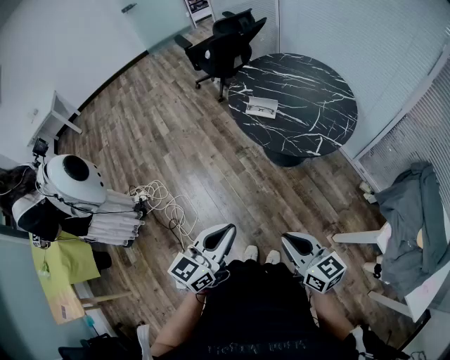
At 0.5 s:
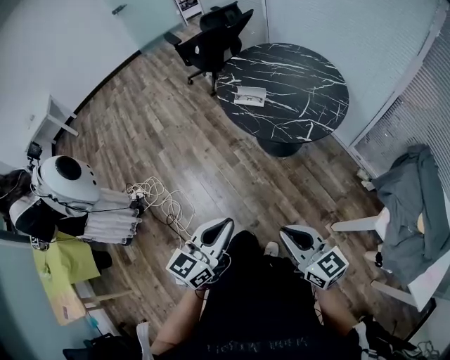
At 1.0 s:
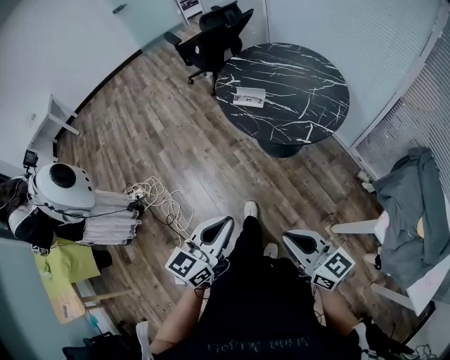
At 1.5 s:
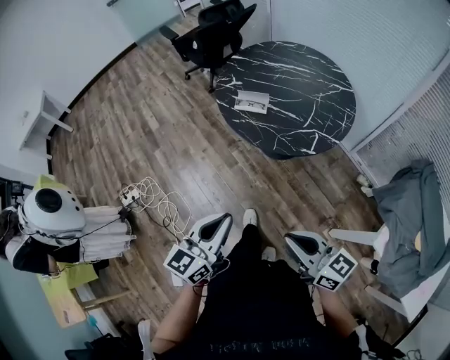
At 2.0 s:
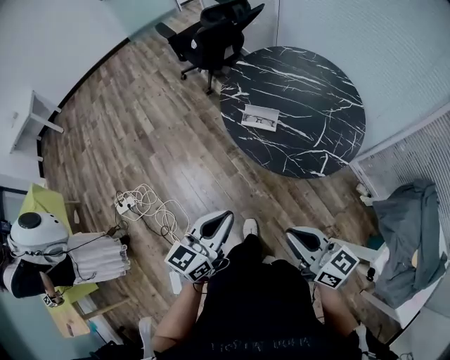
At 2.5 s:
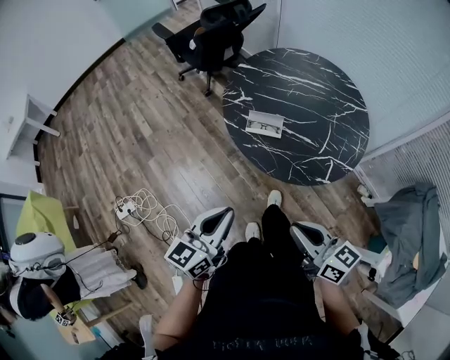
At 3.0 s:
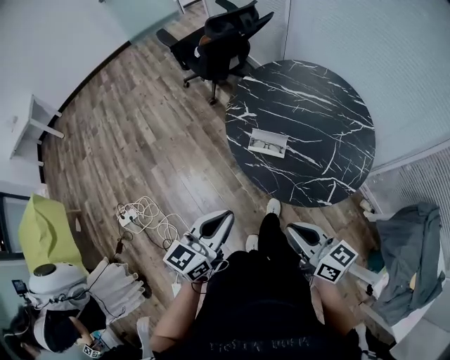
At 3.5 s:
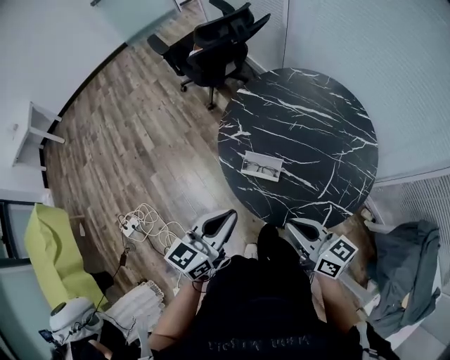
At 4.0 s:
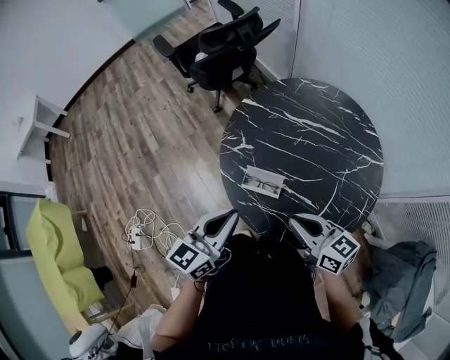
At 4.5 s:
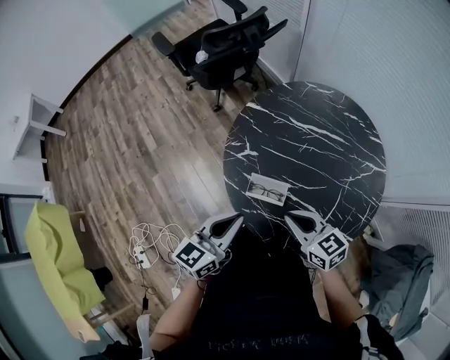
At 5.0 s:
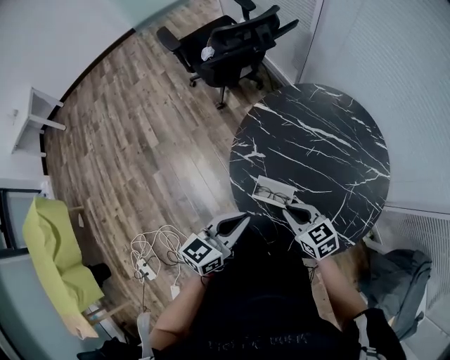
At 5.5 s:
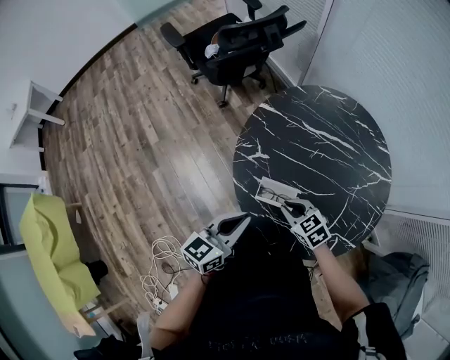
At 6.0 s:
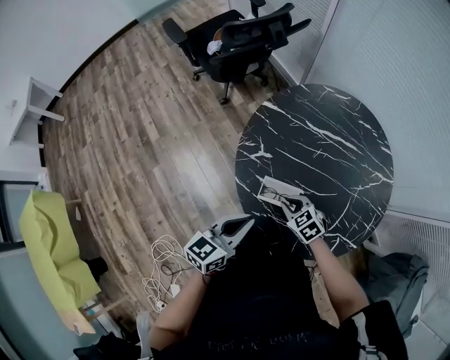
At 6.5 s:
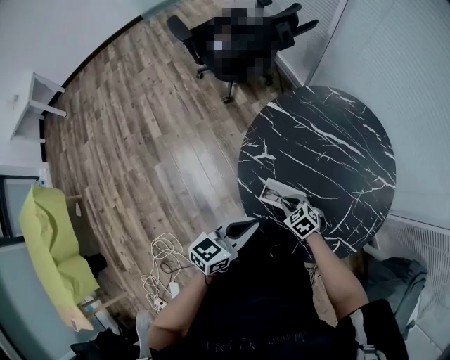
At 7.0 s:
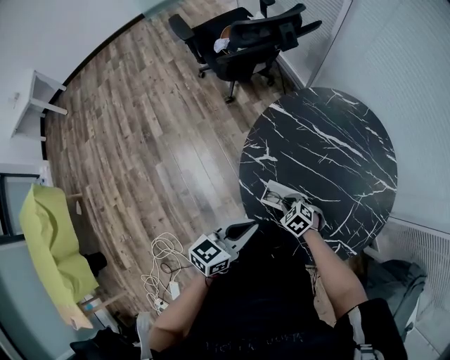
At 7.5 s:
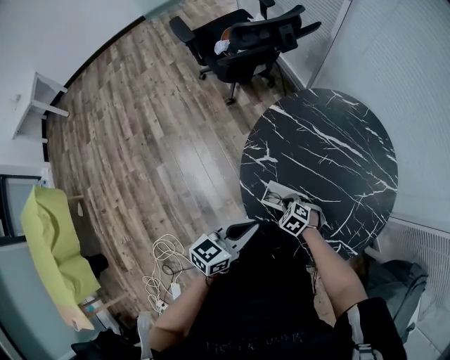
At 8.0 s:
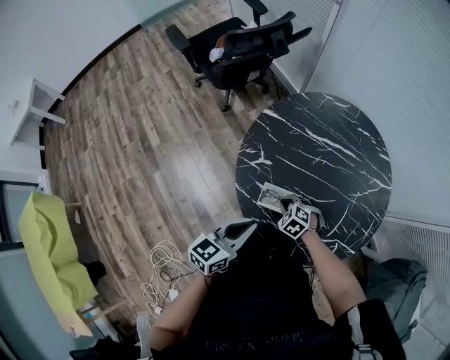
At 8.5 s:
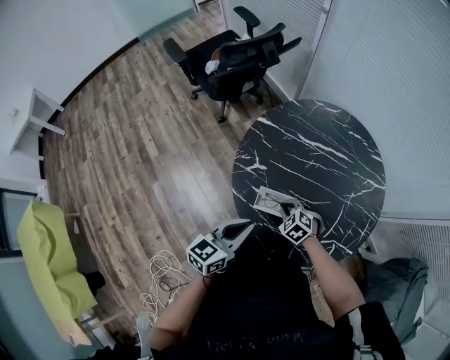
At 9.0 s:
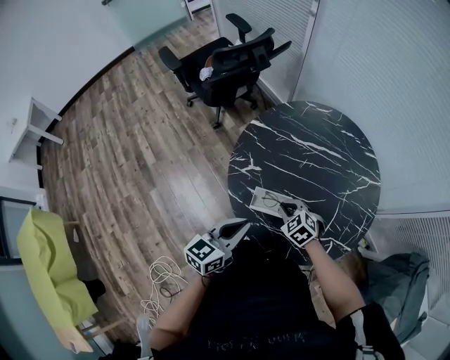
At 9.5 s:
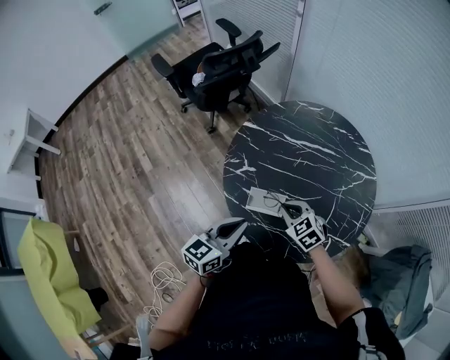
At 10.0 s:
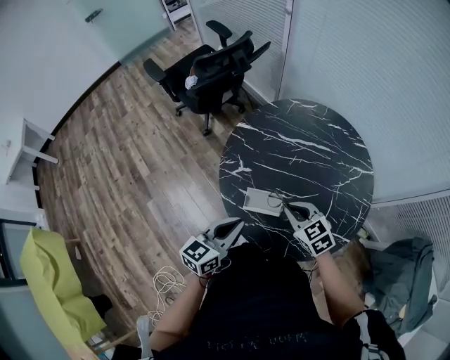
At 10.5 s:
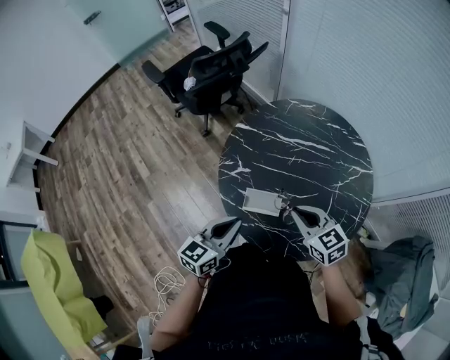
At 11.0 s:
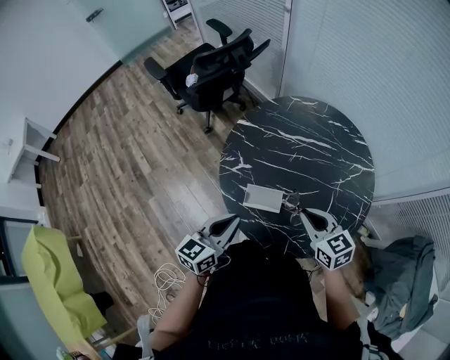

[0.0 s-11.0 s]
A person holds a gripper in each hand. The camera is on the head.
0.0 to 2.0 s: The two grippers go some 20 cm forward.
2.0 to 3.5 s: Both grippers move forward, approximately 25 cm.
3.5 to 5.5 s: The left gripper is displaced forward and downward by roughly 10 cm, while the right gripper is displaced downward and forward by approximately 25 cm, and tilts its fingers some 40 degrees downward.
5.5 to 7.5 s: The right gripper travels downward by roughly 10 cm, and rotates some 40 degrees.
7.5 to 9.0 s: The right gripper goes approximately 10 cm upward, and rotates about 20 degrees.
9.0 to 11.0 s: The right gripper heads upward and to the right, covering roughly 15 cm, and turns by about 40 degrees.

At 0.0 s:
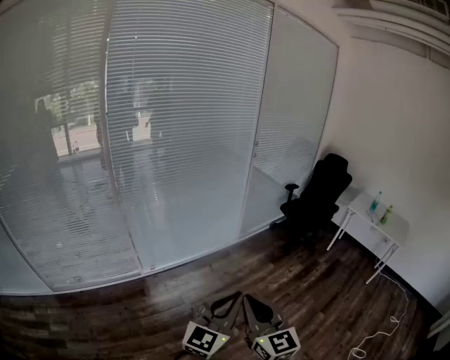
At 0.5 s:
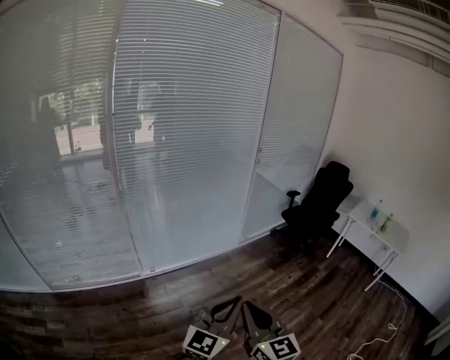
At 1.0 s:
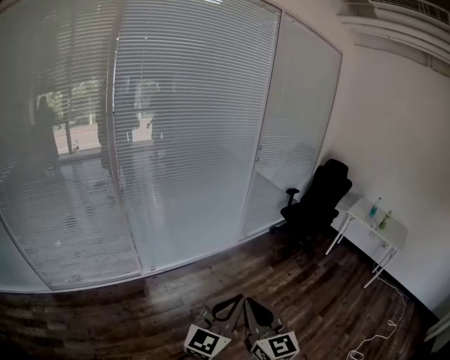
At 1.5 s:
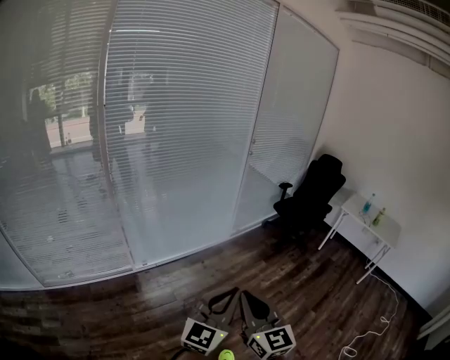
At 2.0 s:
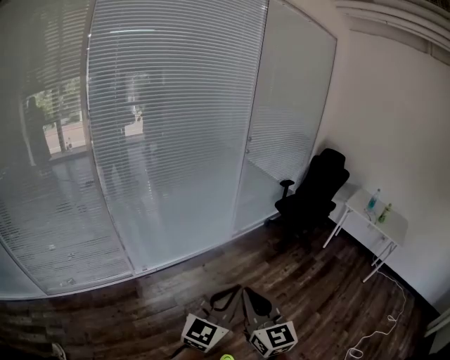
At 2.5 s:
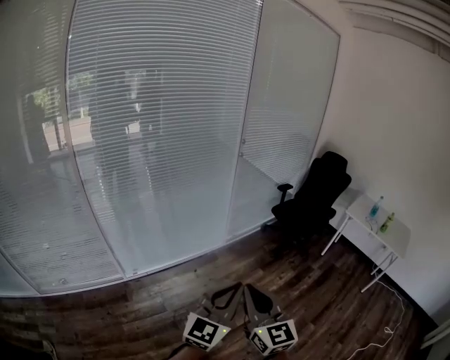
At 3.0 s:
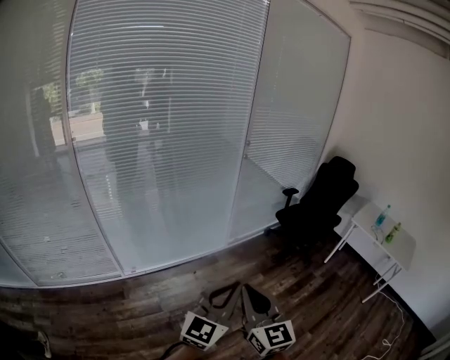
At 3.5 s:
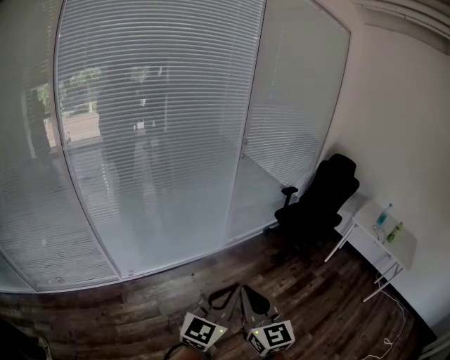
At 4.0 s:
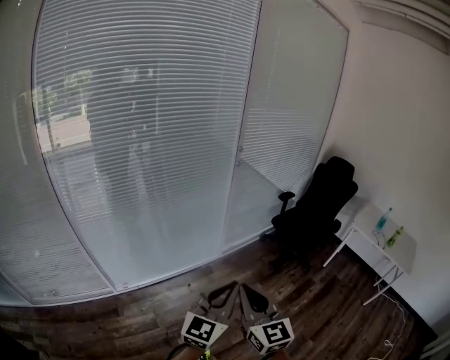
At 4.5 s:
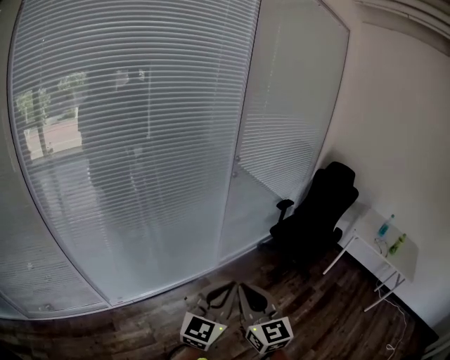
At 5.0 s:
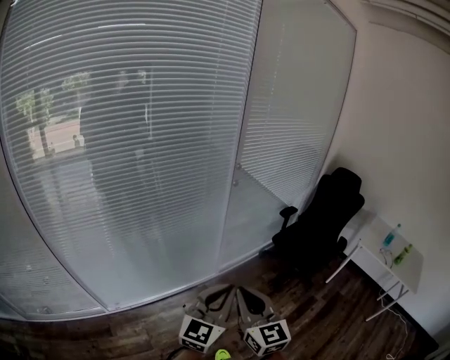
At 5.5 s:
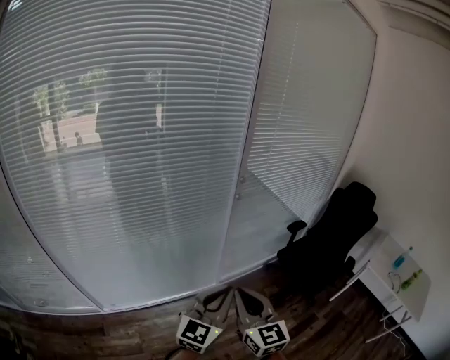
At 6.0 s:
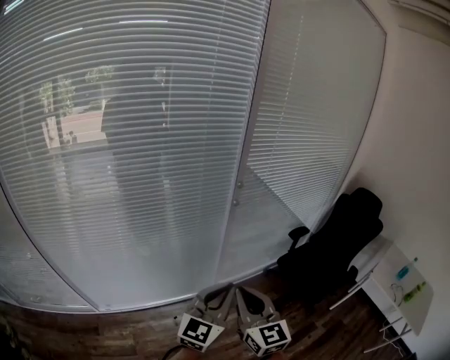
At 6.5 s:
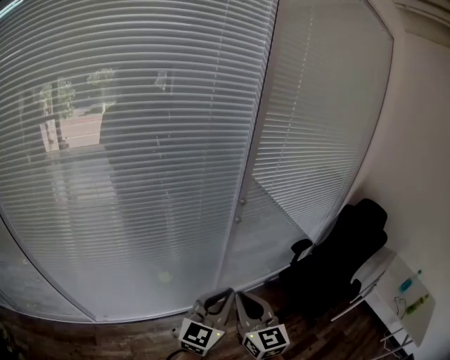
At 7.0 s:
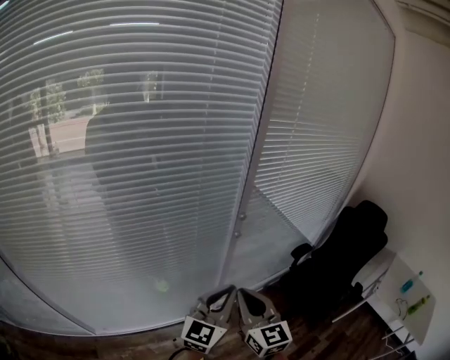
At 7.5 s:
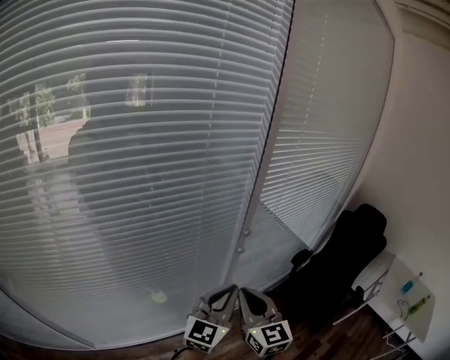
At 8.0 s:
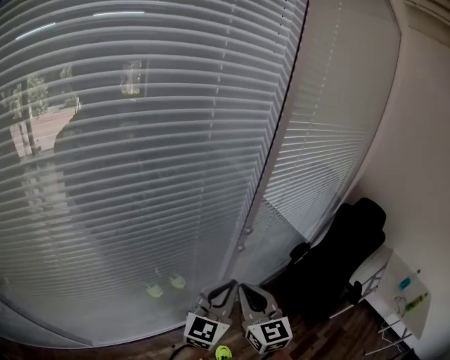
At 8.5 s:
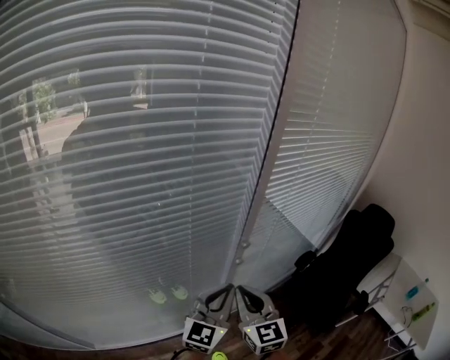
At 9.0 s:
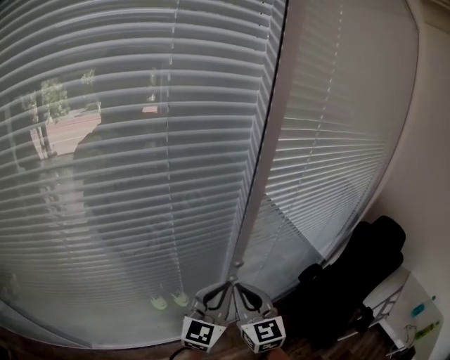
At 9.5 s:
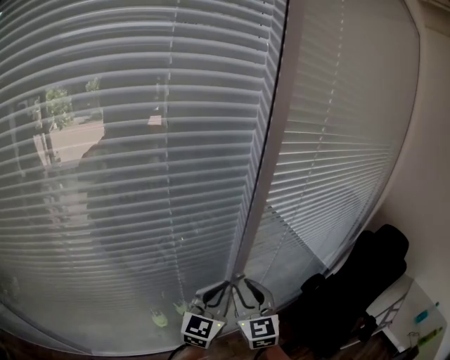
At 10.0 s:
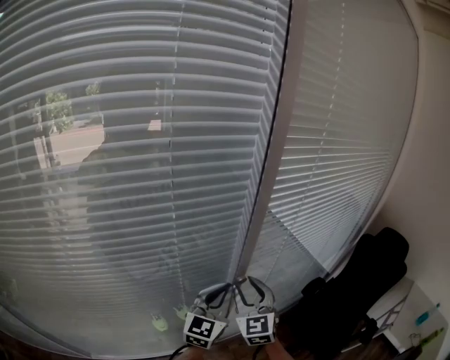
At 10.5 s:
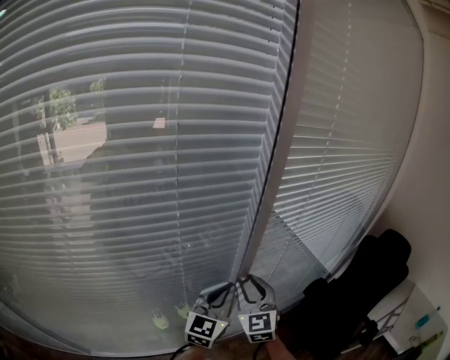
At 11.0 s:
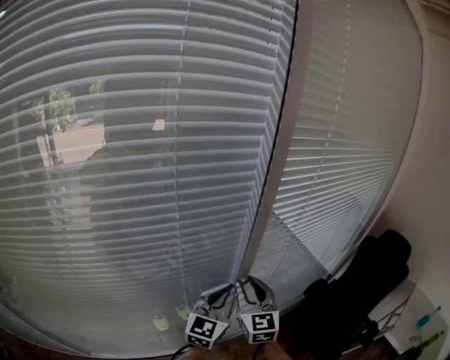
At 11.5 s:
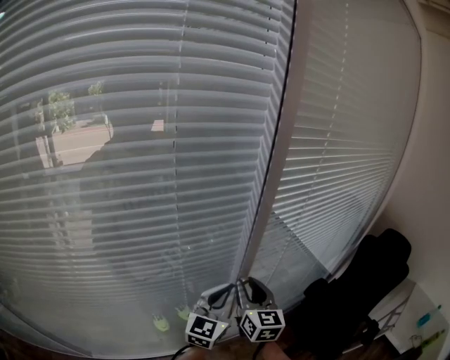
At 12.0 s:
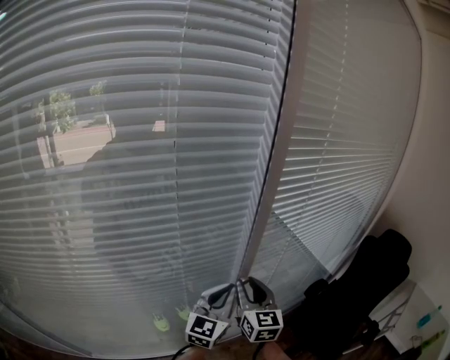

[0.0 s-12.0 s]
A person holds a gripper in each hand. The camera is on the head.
0.0 to 2.0 s: The grippers both shift forward by approximately 10 cm.
2.0 to 4.0 s: The two grippers go some 30 cm forward.
4.0 to 6.0 s: Both grippers move forward, about 35 cm.
6.0 to 8.0 s: The two grippers go roughly 25 cm forward.
8.0 to 10.0 s: Both grippers travel together forward, approximately 15 cm. The right gripper opens.
10.0 to 12.0 s: The right gripper swivels roughly 20 degrees.

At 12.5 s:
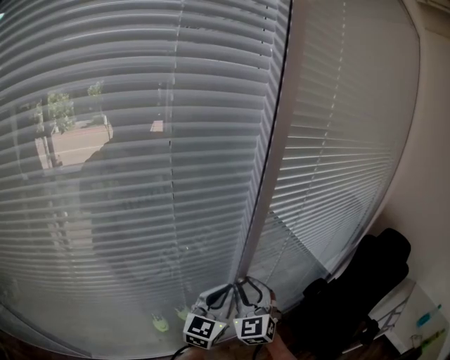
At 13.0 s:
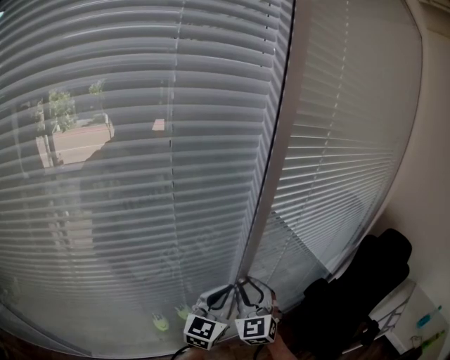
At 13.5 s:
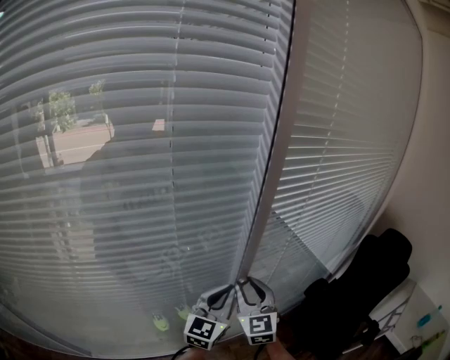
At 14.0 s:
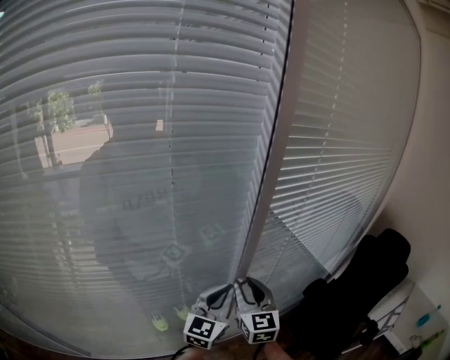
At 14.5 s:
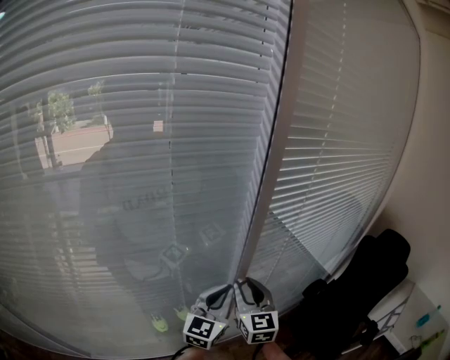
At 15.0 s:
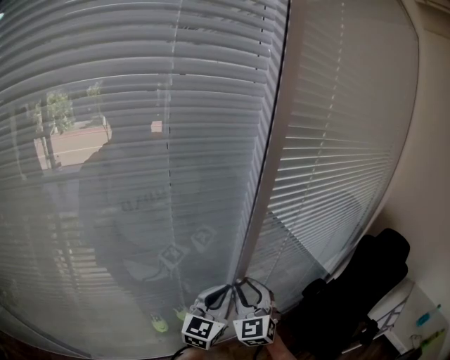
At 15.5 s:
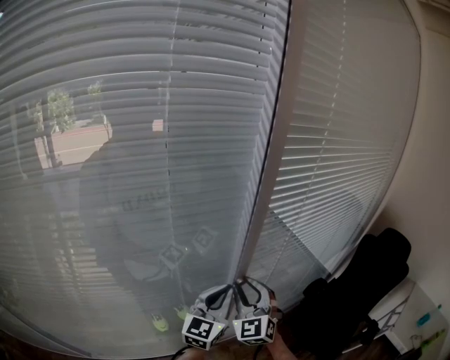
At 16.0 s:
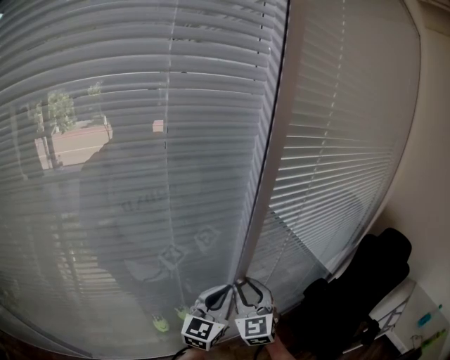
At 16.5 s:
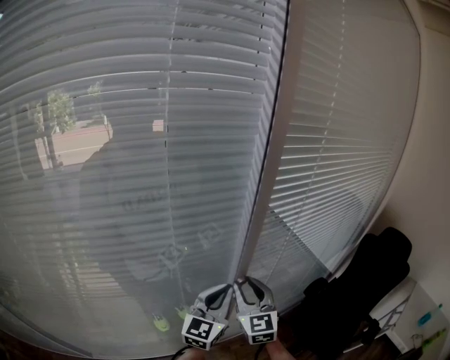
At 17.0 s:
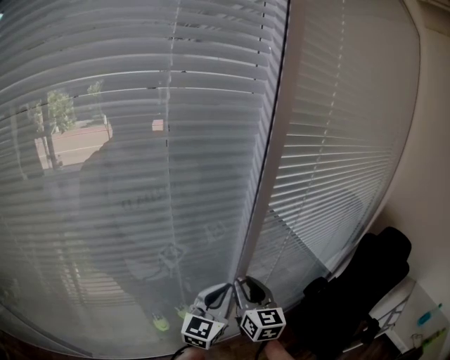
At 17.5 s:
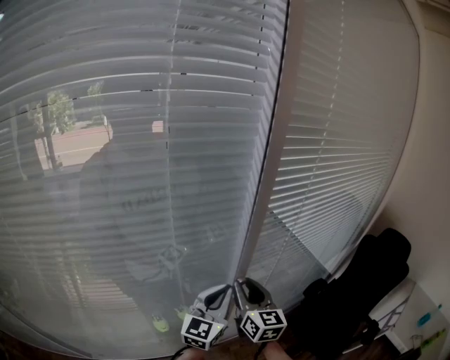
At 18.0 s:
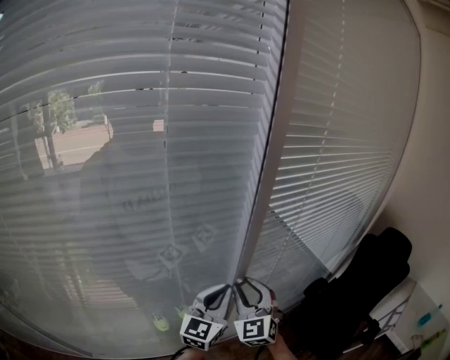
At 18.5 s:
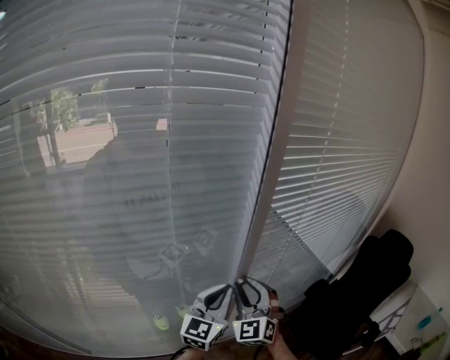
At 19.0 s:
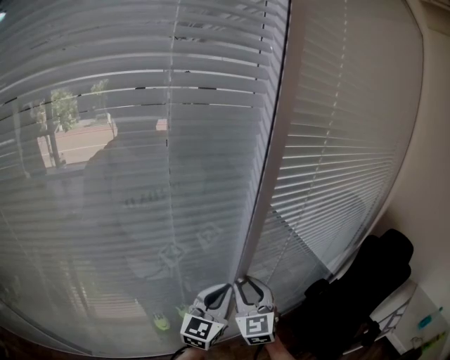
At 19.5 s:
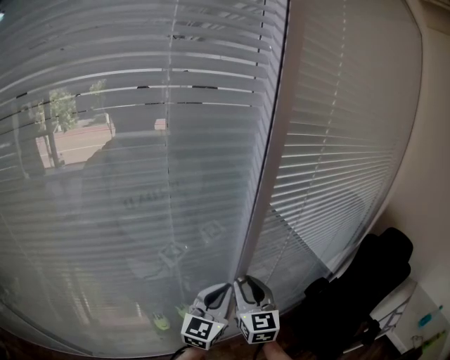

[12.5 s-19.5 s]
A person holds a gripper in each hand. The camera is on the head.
12.5 to 14.5 s: The right gripper rotates about 30 degrees.
14.5 to 16.0 s: The right gripper changes its angle by about 20 degrees.
16.0 to 17.5 s: The right gripper rotates some 40 degrees.
